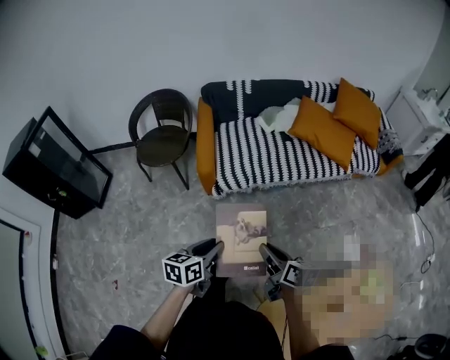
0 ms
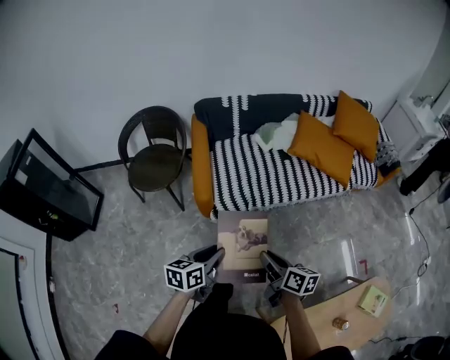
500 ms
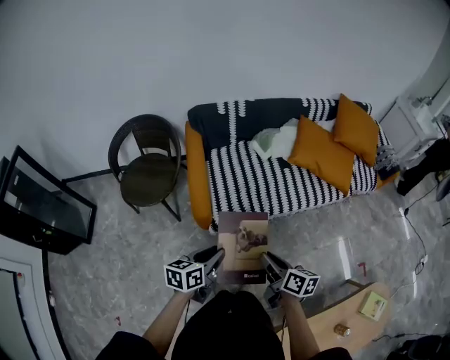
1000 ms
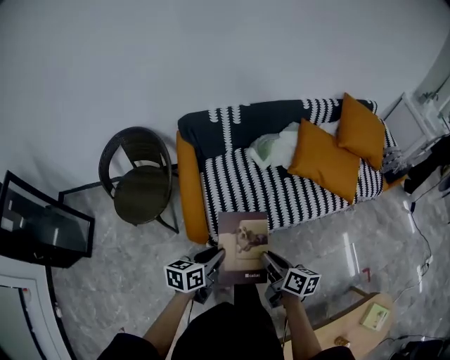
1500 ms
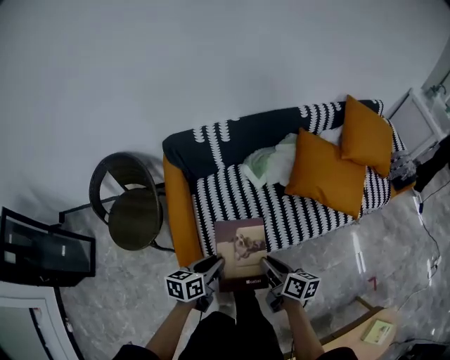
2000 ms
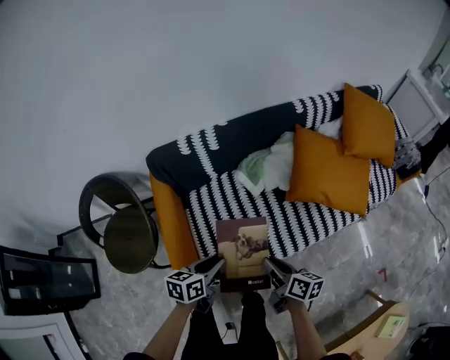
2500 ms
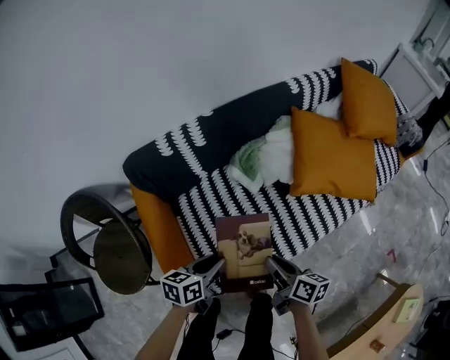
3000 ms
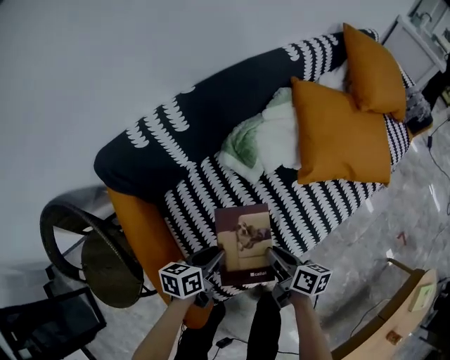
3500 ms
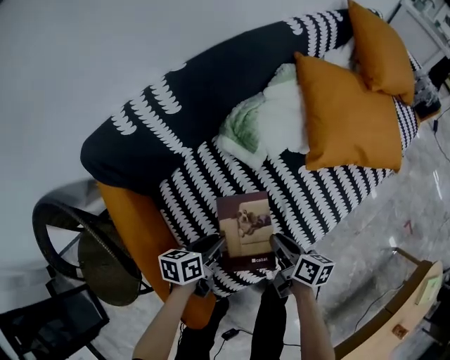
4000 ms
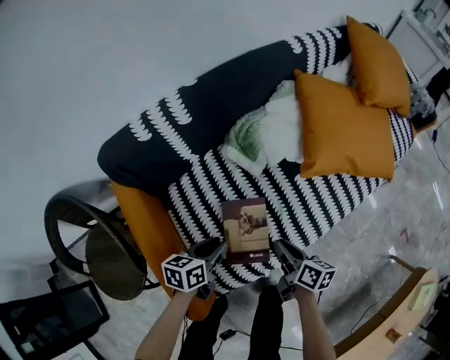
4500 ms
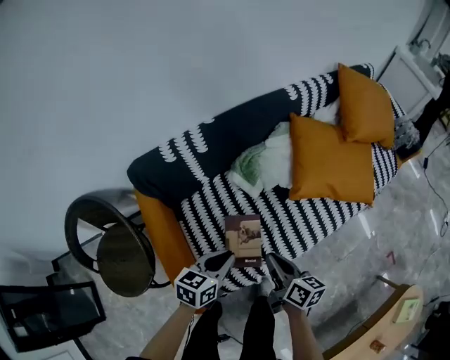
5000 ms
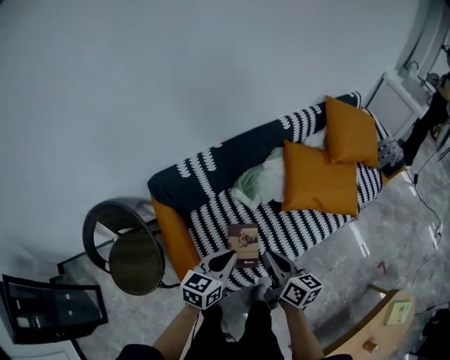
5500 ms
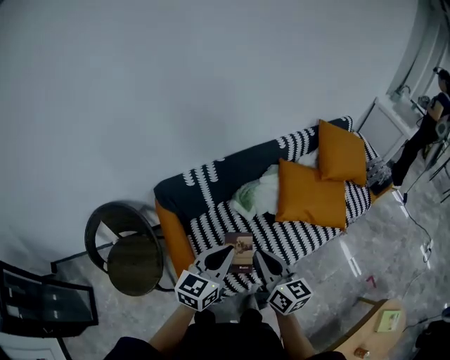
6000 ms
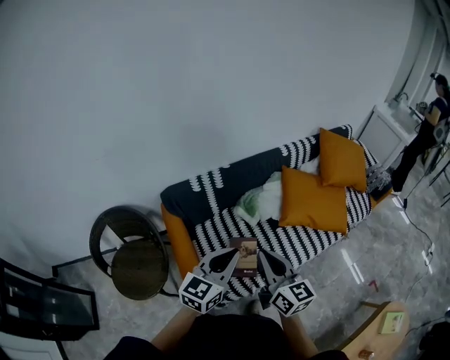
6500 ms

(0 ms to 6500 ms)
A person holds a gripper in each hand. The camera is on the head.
0 ms - 2000 ms: Both grippers are carried forward, roughly 50 cm.
2000 ms - 4500 ms: The grippers both shift downward and forward by about 35 cm. The right gripper rotates some 20 degrees.
4500 ms - 6500 ms: The grippers both shift upward by some 50 cm. The right gripper changes its angle by about 50 degrees; the left gripper swivels roughly 50 degrees, and closes its fingers.

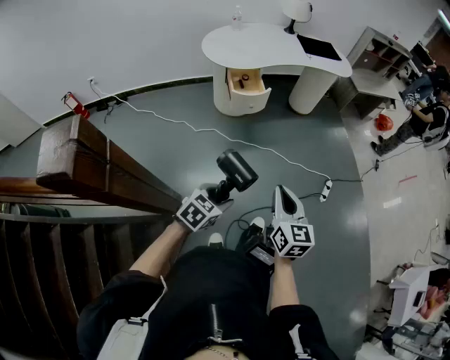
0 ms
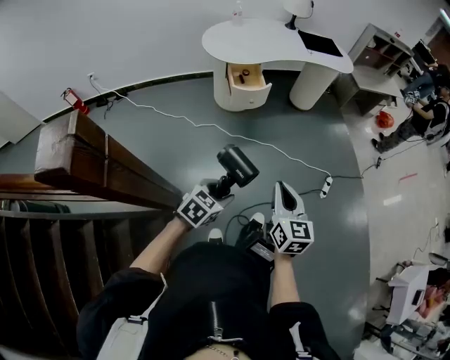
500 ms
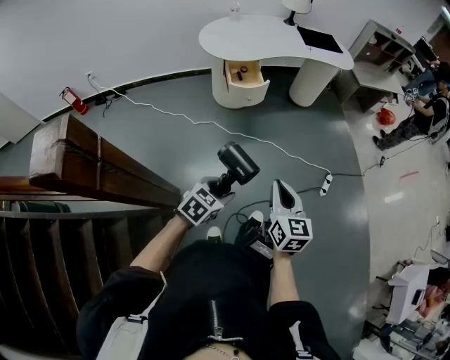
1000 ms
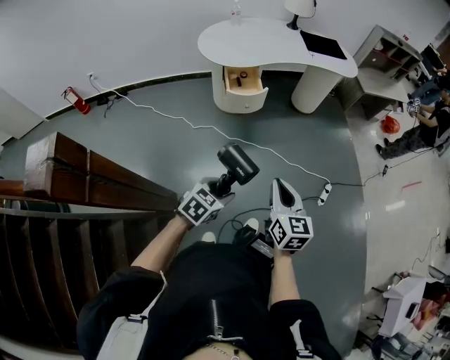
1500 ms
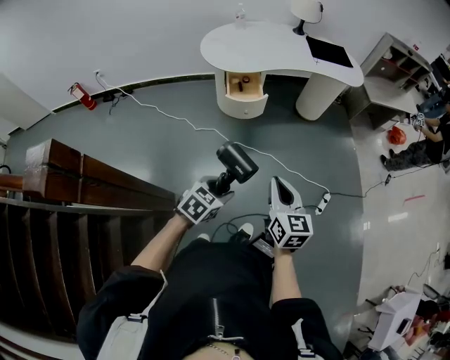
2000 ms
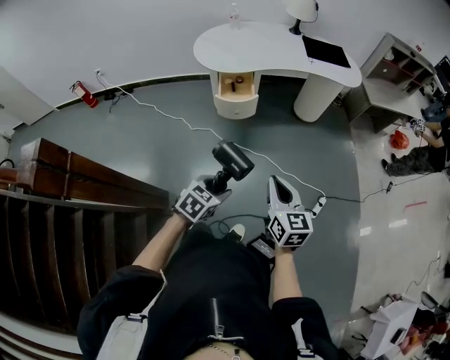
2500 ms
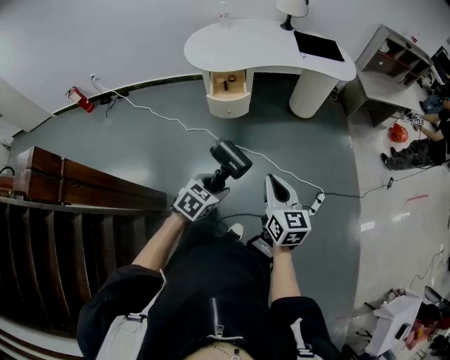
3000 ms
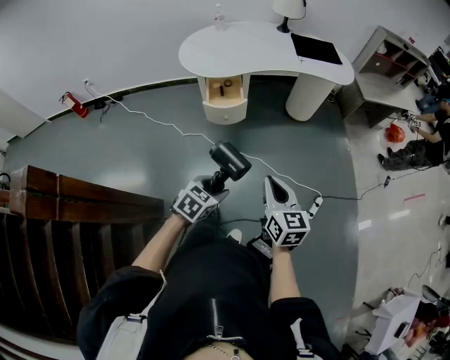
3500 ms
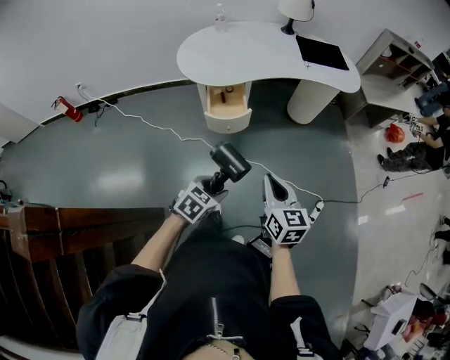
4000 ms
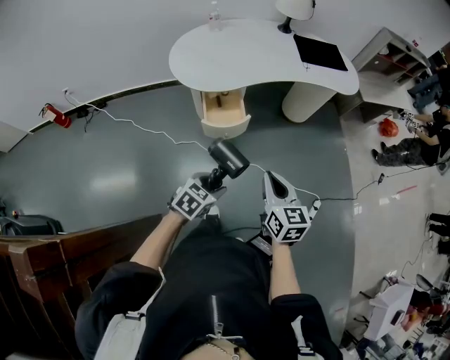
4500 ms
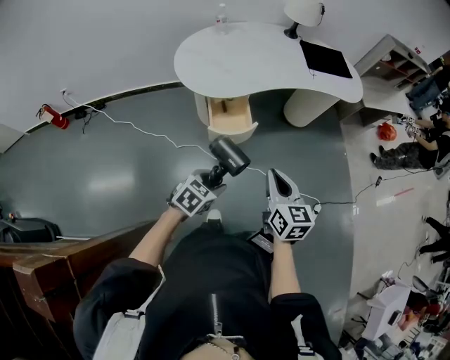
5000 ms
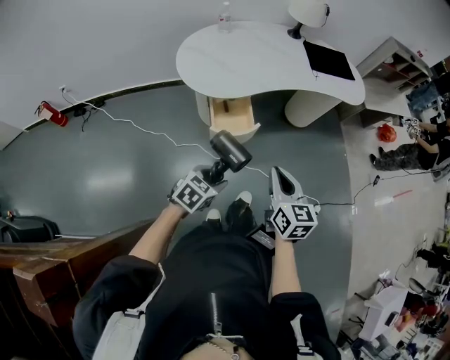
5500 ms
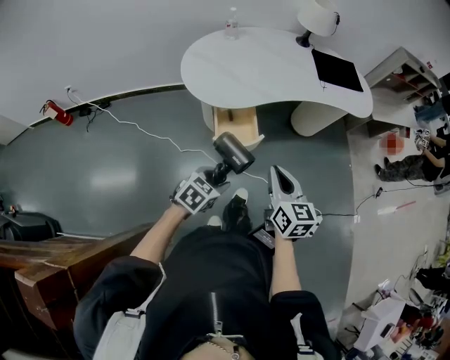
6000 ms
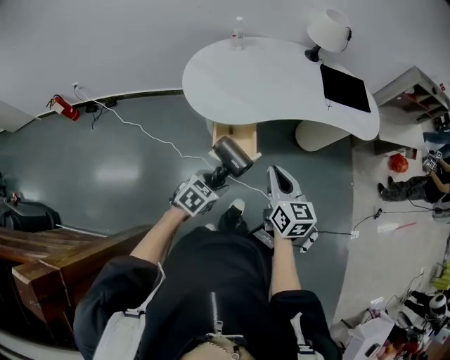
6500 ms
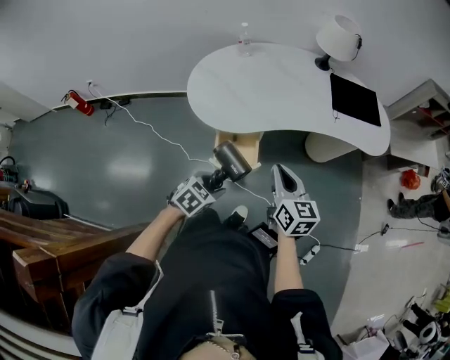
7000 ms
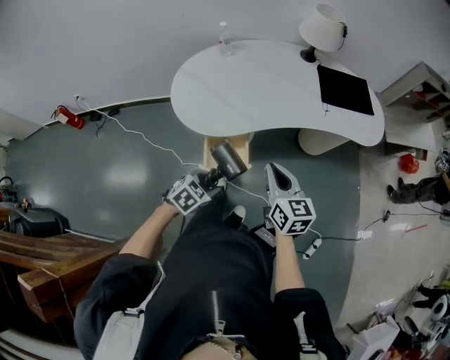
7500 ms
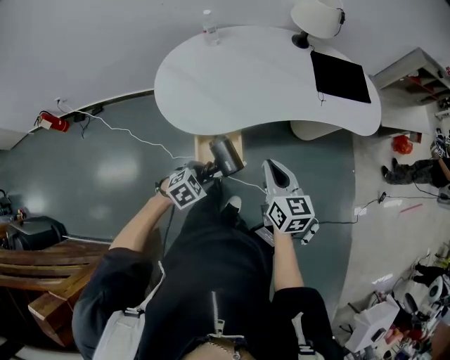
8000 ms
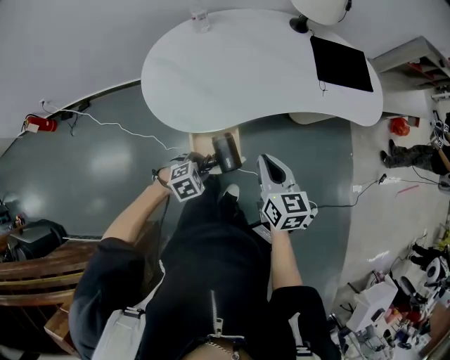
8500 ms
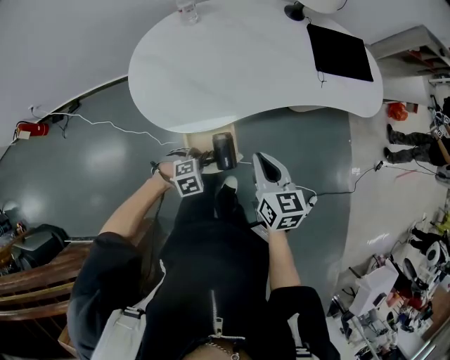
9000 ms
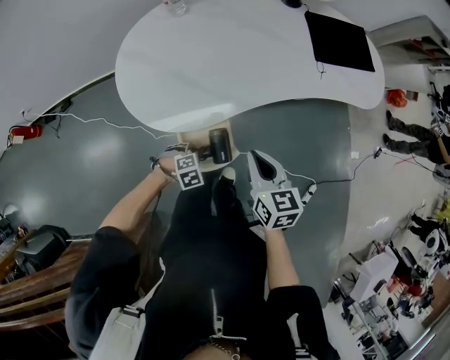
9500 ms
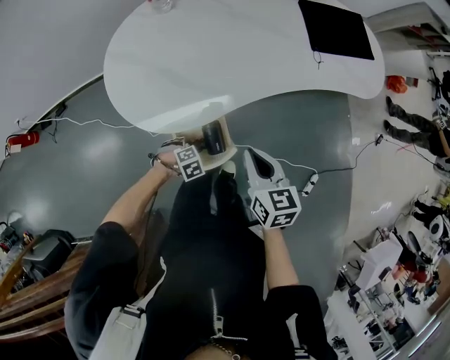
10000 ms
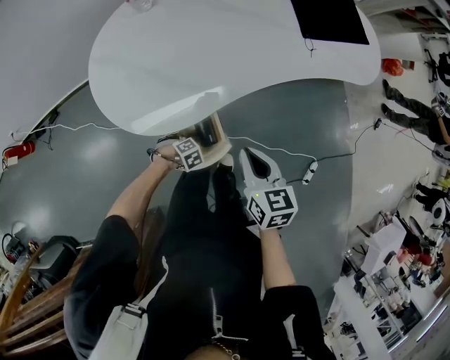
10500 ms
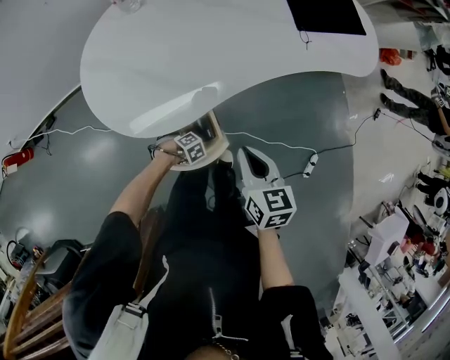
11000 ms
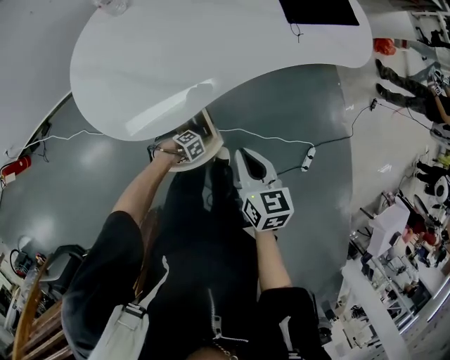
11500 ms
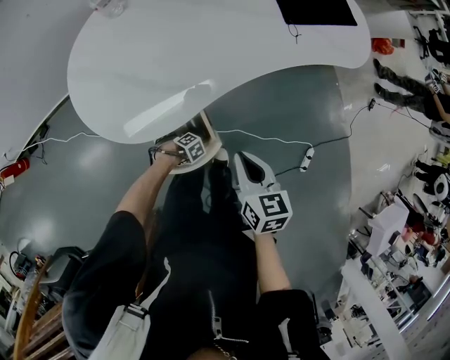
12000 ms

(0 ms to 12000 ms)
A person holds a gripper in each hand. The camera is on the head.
0 ms - 2000 ms: The right gripper is displaced forward by approximately 15 cm. The left gripper heads forward and to the right, covering some 15 cm.
2000 ms - 4000 ms: Both grippers move forward, roughly 15 cm.
4000 ms - 6000 ms: The two grippers go approximately 20 cm forward and to the left.
6000 ms - 8000 ms: The grippers both shift forward by about 20 cm. The left gripper rotates about 20 degrees.
8000 ms - 10000 ms: The right gripper goes some 10 cm downward. The left gripper is displaced downward by roughly 20 cm, and rotates roughly 30 degrees.
10000 ms - 12000 ms: The left gripper is displaced downward by about 10 cm.

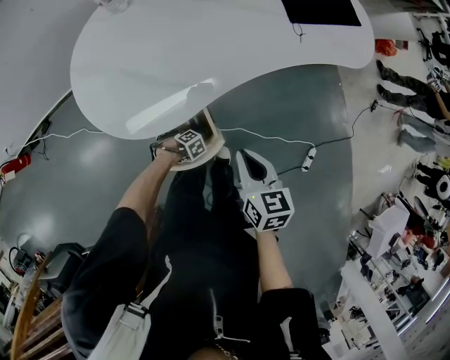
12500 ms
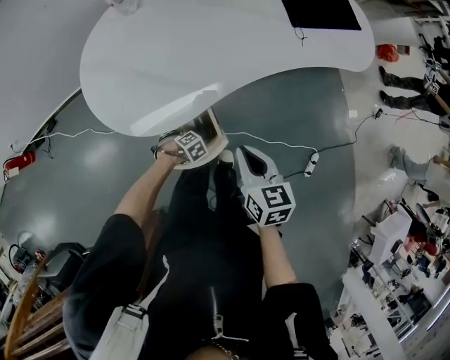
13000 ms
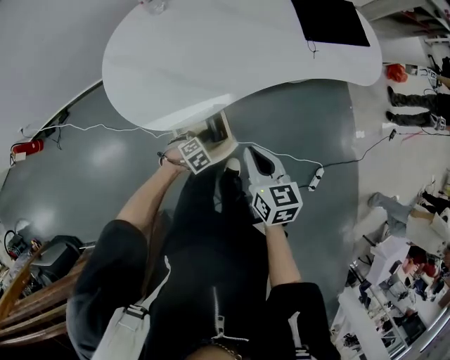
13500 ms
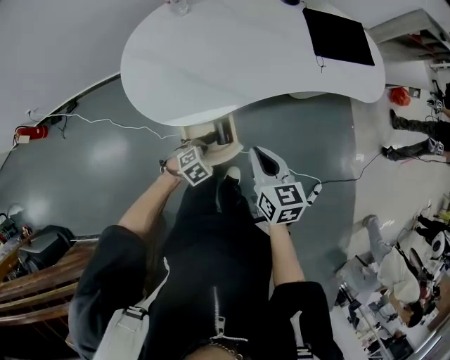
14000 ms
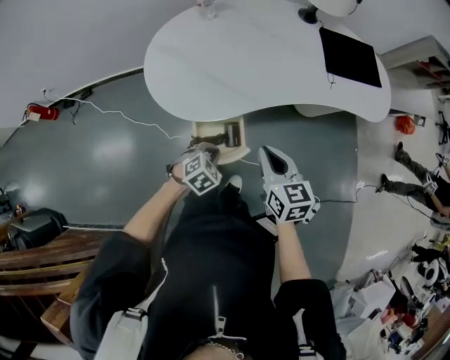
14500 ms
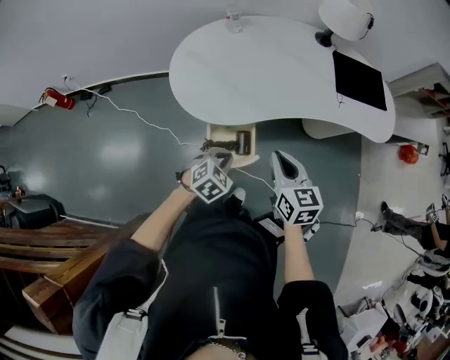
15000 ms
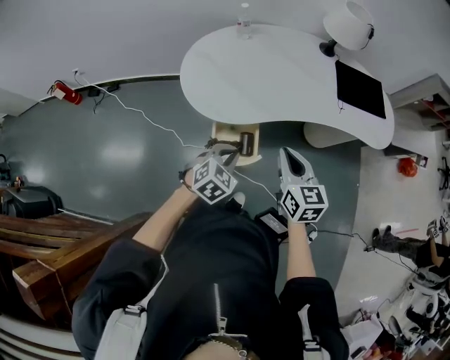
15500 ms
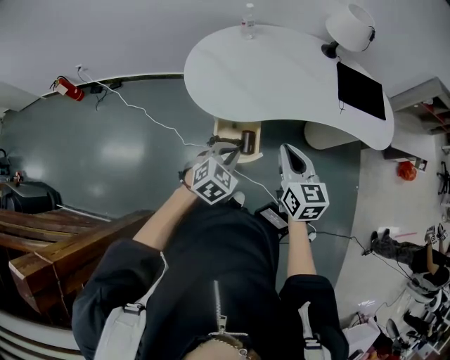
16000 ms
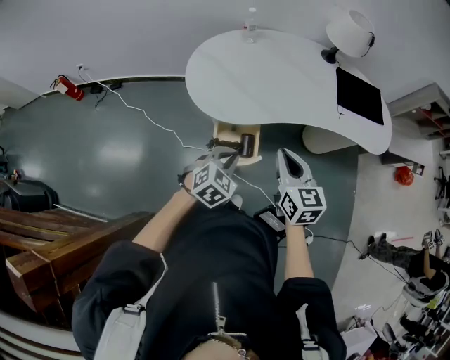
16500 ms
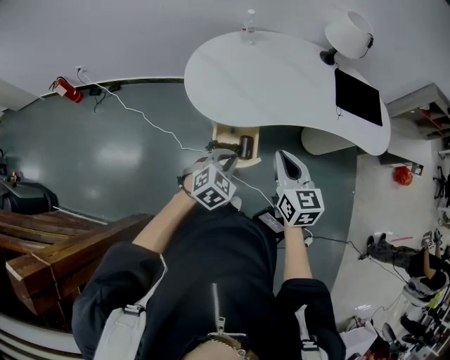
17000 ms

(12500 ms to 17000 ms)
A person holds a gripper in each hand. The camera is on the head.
12500 ms - 14500 ms: The left gripper travels upward by about 25 cm, swivels approximately 50 degrees, and closes its fingers. Meanwhile the right gripper goes roughly 5 cm upward, and swivels some 20 degrees.
14500 ms - 17000 ms: The left gripper travels upward by about 15 cm, and rotates roughly 20 degrees; the right gripper goes approximately 5 cm upward.

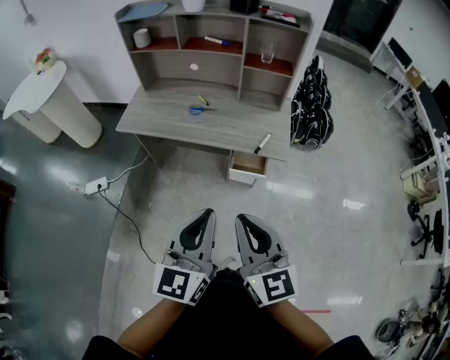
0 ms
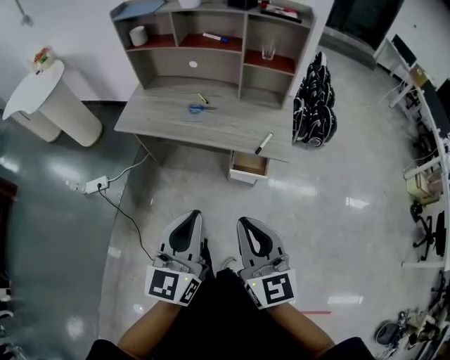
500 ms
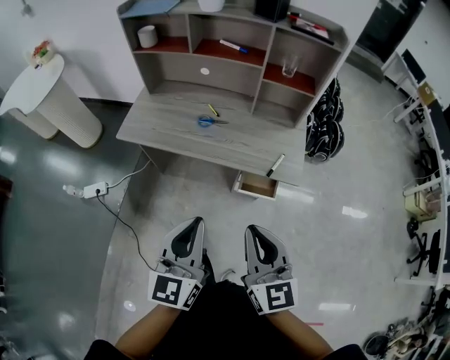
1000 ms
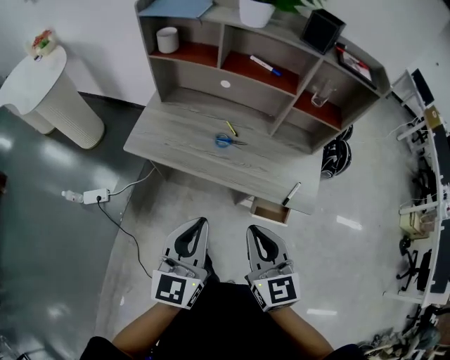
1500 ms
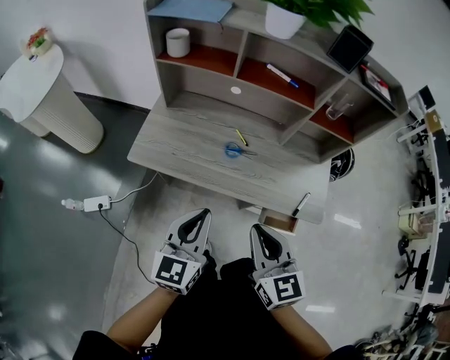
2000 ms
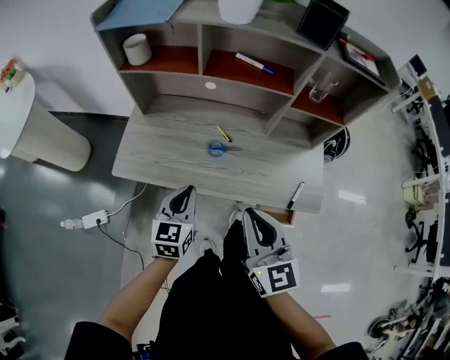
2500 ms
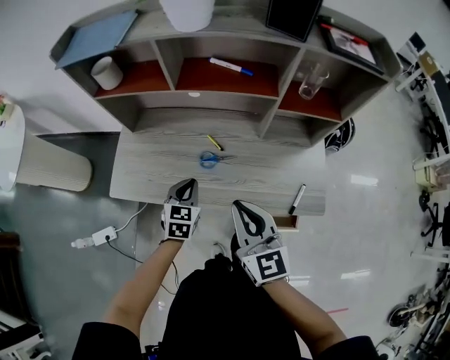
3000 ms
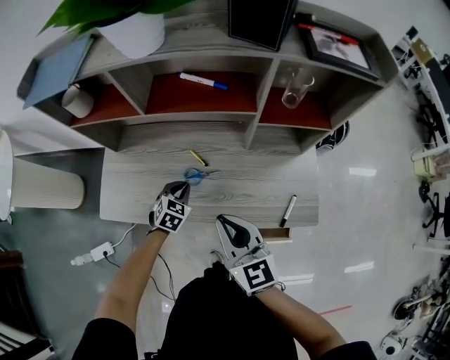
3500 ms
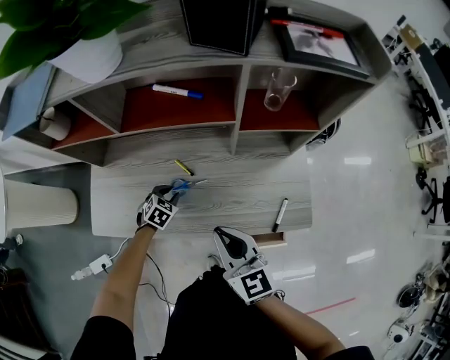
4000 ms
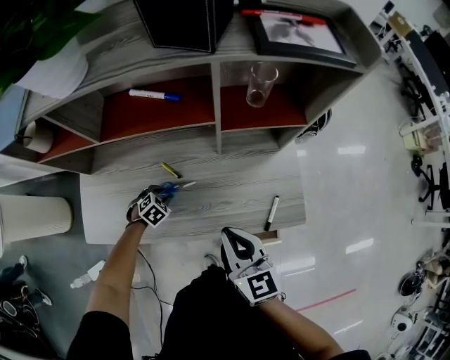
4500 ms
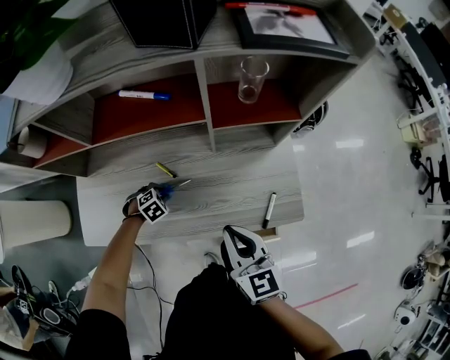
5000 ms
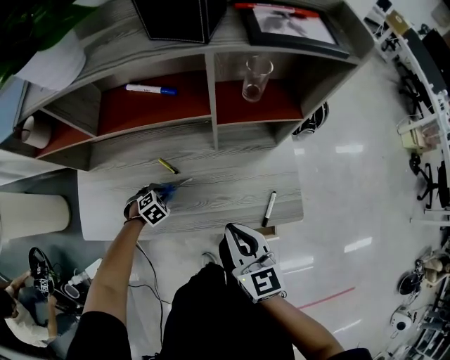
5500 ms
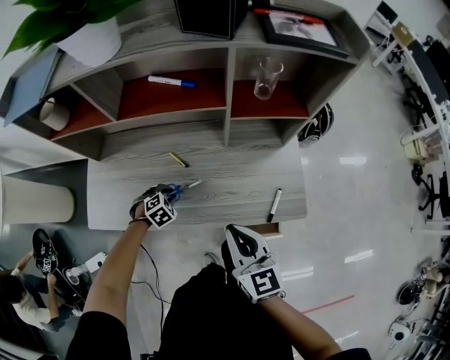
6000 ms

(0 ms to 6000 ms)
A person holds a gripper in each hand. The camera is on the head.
0 ms - 2000 ms: Both grippers travel together forward and to the left, roughly 35 cm.
2000 ms - 4000 ms: The right gripper goes roughly 20 cm forward, downward and to the right, while the left gripper heads downward and forward, covering roughly 50 cm, tips its fingers downward by roughly 50 degrees, and opens.
4000 ms - 6000 ms: The right gripper moves approximately 5 cm, while the left gripper changes its angle by about 20 degrees.
